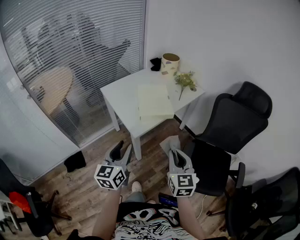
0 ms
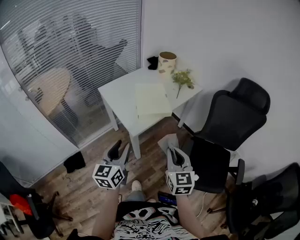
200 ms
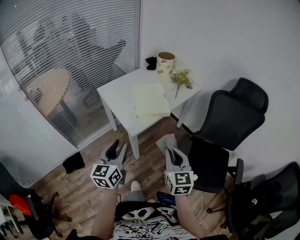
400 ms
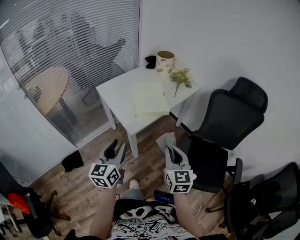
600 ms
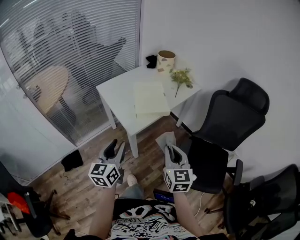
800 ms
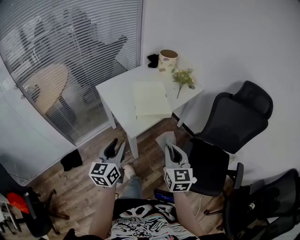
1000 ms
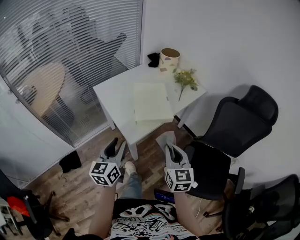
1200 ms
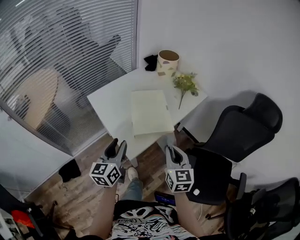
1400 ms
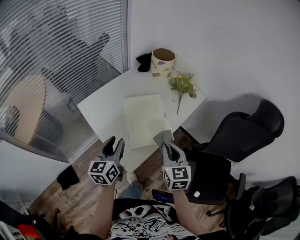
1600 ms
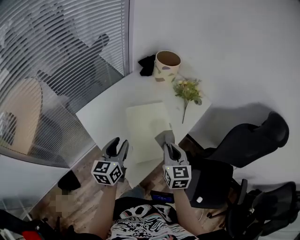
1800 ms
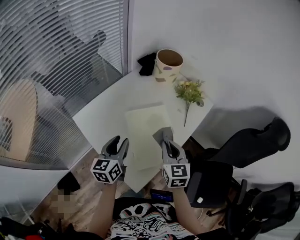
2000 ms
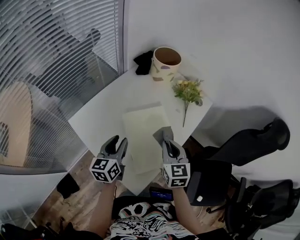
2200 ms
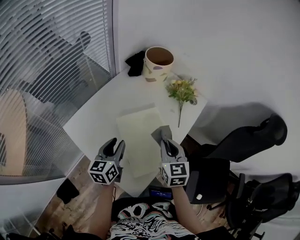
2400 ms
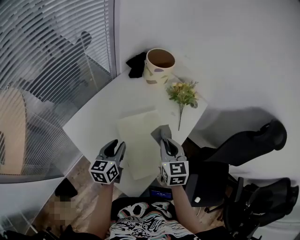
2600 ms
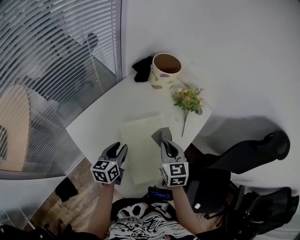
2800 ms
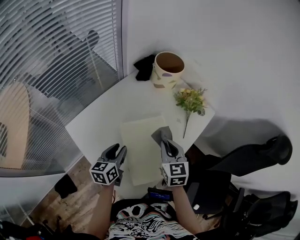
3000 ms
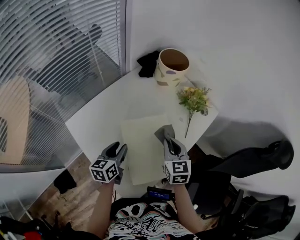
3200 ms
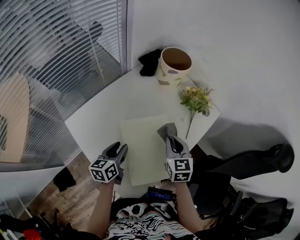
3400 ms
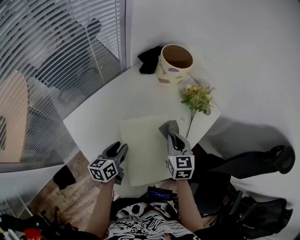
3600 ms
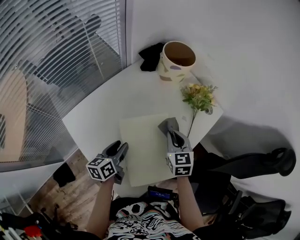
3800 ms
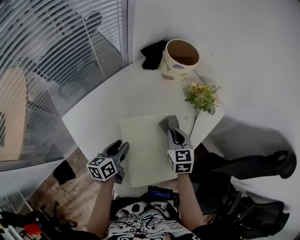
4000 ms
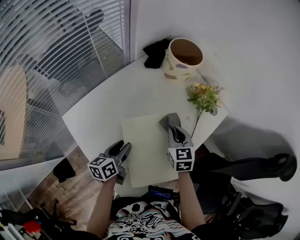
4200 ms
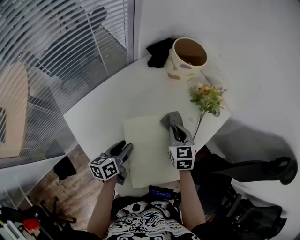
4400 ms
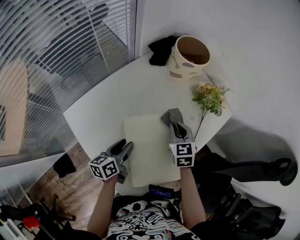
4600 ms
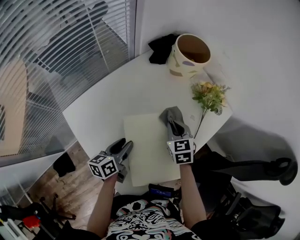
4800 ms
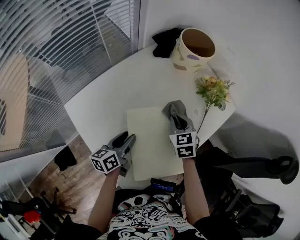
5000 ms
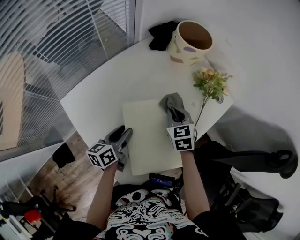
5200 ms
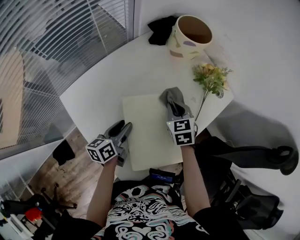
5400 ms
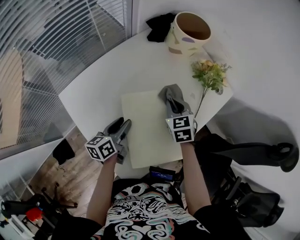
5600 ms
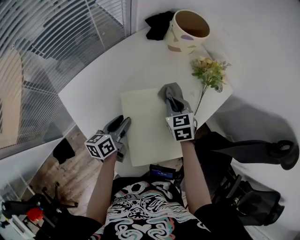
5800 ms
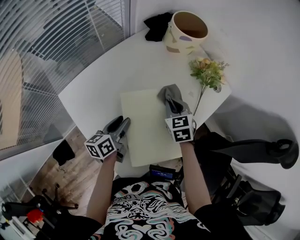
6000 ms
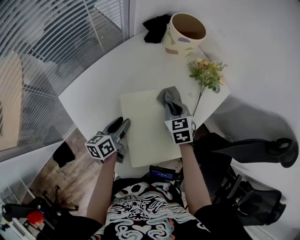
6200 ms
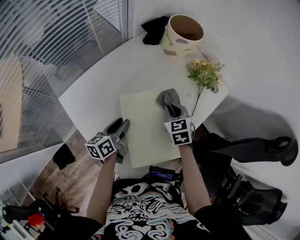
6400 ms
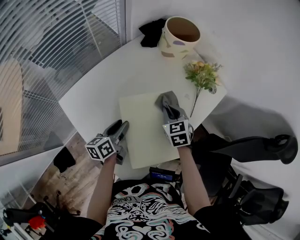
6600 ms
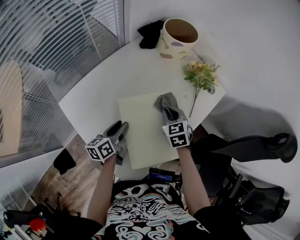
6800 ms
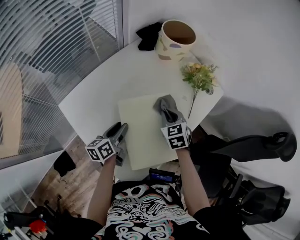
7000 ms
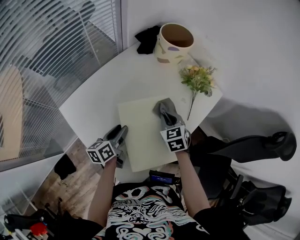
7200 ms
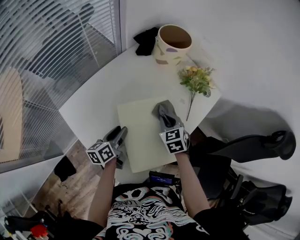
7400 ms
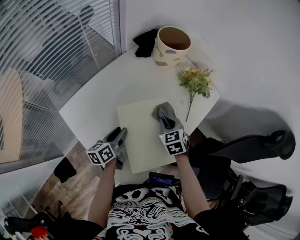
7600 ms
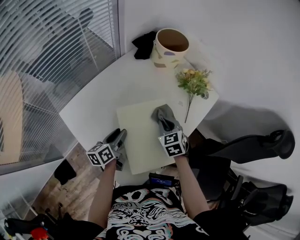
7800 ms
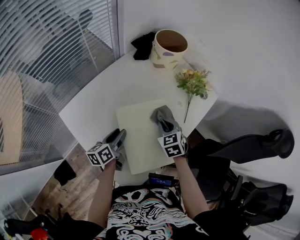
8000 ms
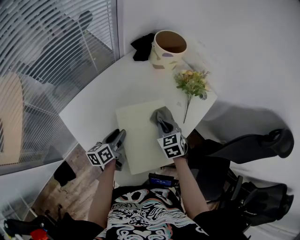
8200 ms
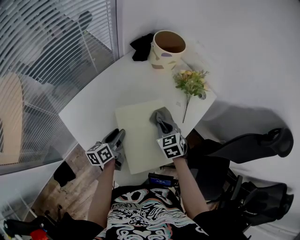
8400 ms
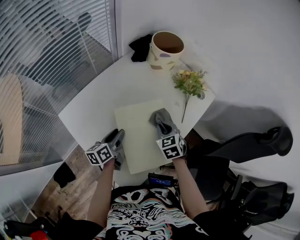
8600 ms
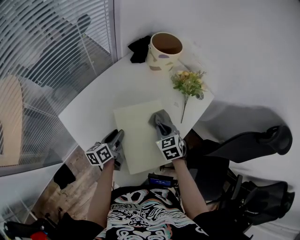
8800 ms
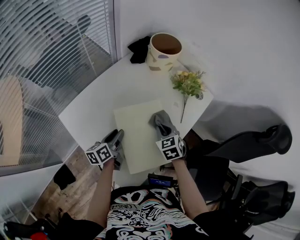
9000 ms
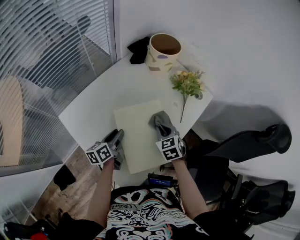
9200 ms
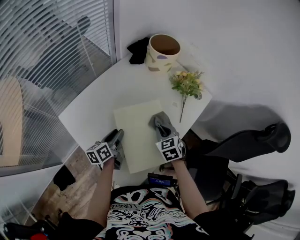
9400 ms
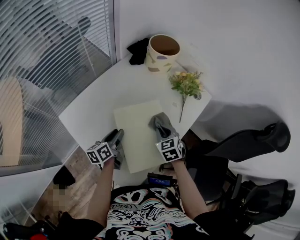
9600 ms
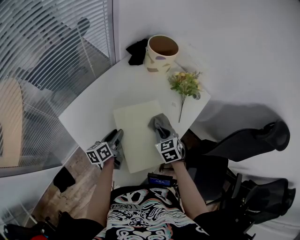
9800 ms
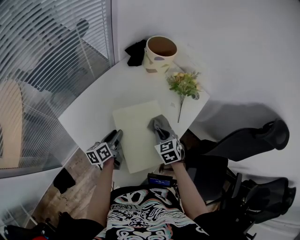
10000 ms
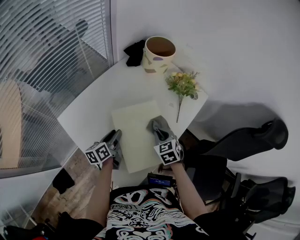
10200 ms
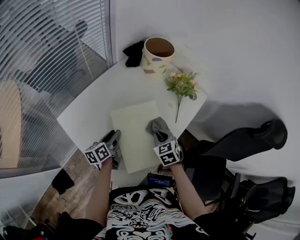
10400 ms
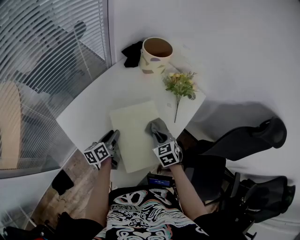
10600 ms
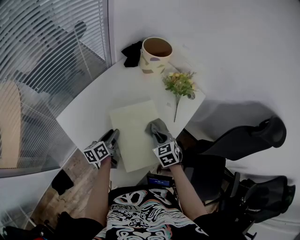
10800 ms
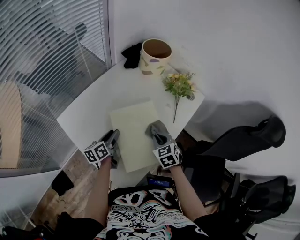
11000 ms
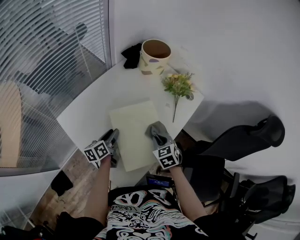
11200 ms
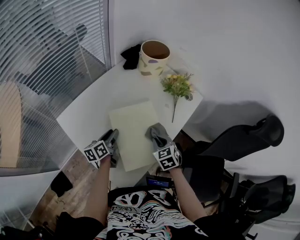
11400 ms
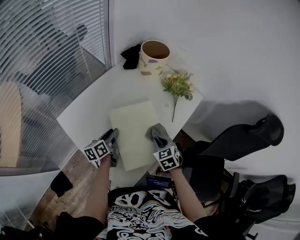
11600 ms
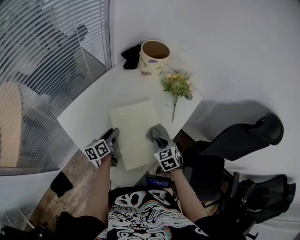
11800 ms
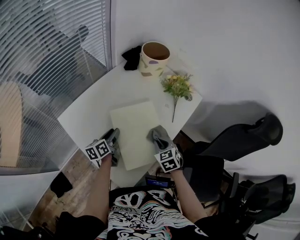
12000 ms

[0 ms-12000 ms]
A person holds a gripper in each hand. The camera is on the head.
0 ms to 1600 ms: Both grippers travel together forward, approximately 30 cm.
1600 ms to 3000 ms: The left gripper goes approximately 20 cm forward and downward, while the right gripper is displaced forward by roughly 20 cm.
3000 ms to 4400 ms: The right gripper is displaced forward and downward by approximately 10 cm; the left gripper travels downward by roughly 5 cm.
4400 ms to 7600 ms: The grippers make only small movements.
7600 ms to 9000 ms: The grippers stay close to where they were, moving slightly.
9000 ms to 10400 ms: The grippers stay close to where they were, moving slightly.
10400 ms to 12000 ms: The right gripper moves backward, roughly 5 cm.

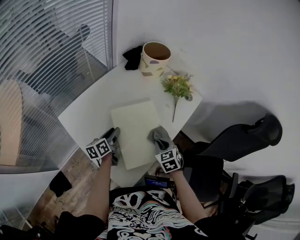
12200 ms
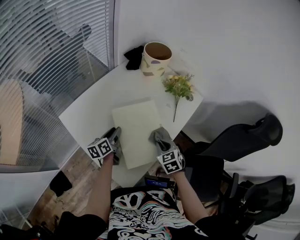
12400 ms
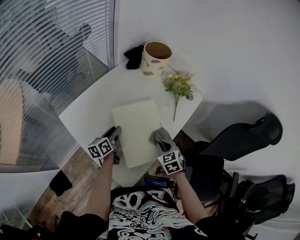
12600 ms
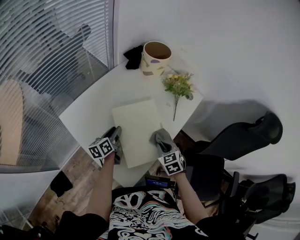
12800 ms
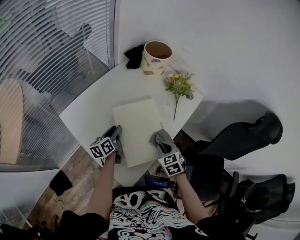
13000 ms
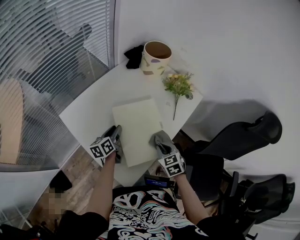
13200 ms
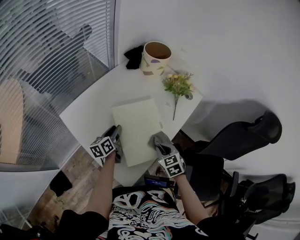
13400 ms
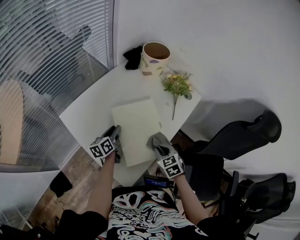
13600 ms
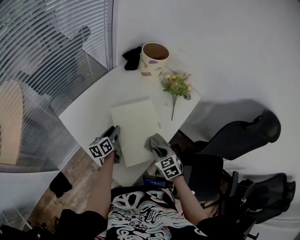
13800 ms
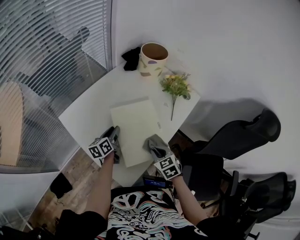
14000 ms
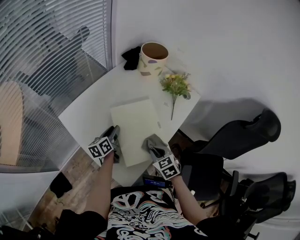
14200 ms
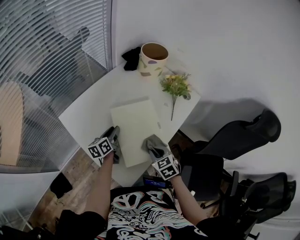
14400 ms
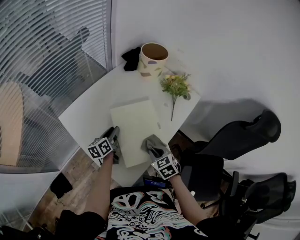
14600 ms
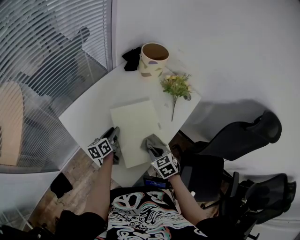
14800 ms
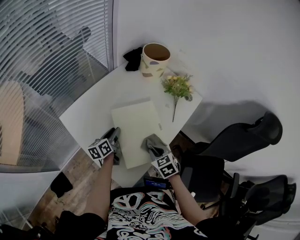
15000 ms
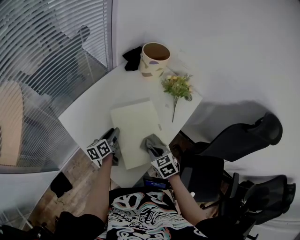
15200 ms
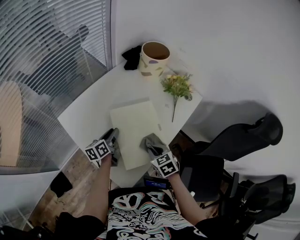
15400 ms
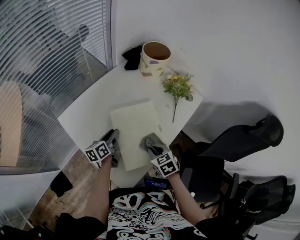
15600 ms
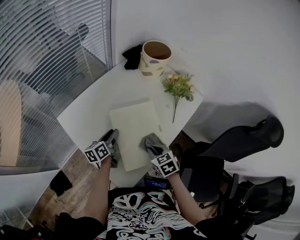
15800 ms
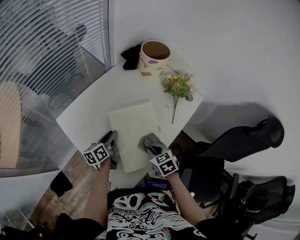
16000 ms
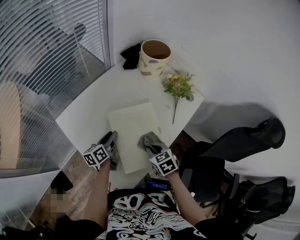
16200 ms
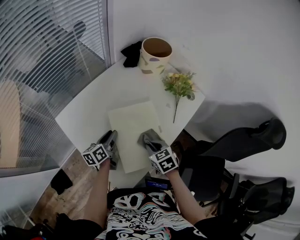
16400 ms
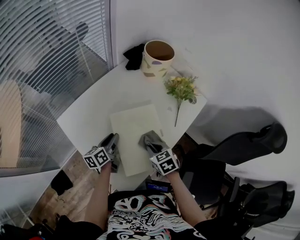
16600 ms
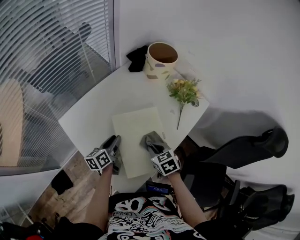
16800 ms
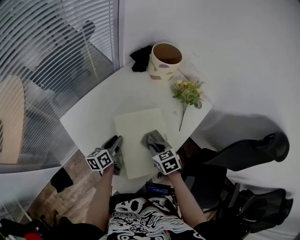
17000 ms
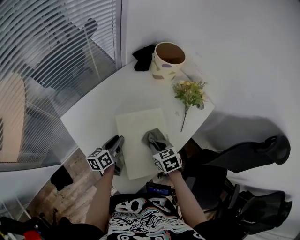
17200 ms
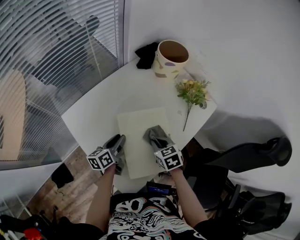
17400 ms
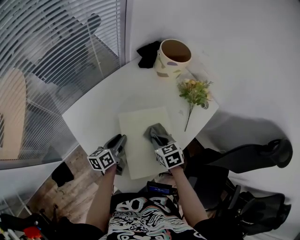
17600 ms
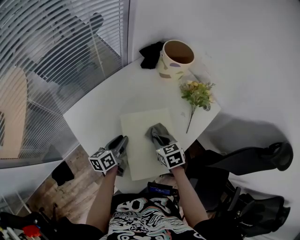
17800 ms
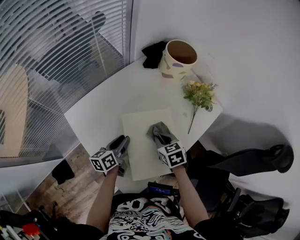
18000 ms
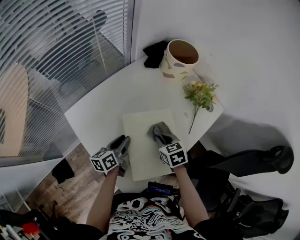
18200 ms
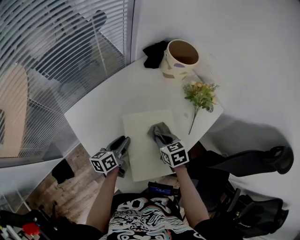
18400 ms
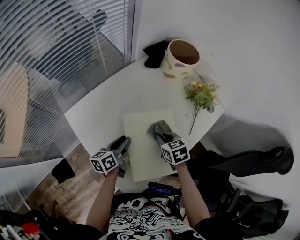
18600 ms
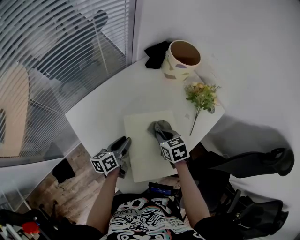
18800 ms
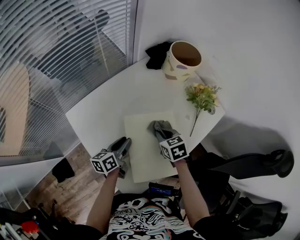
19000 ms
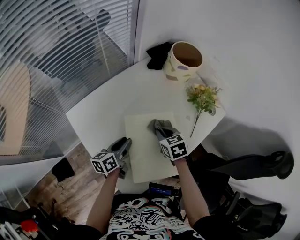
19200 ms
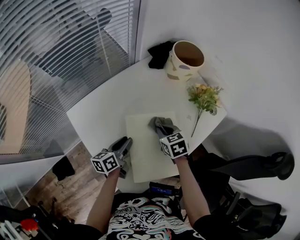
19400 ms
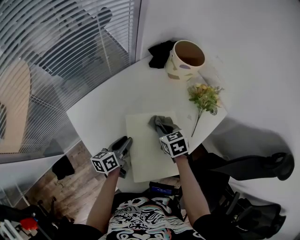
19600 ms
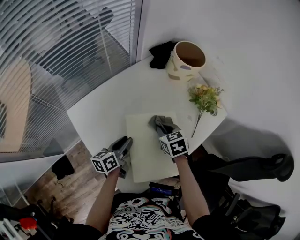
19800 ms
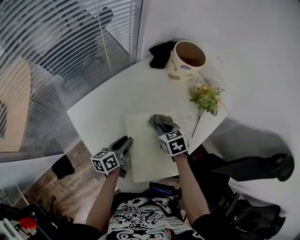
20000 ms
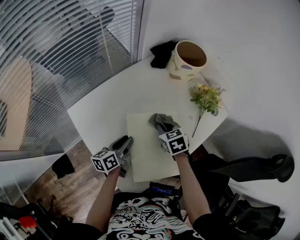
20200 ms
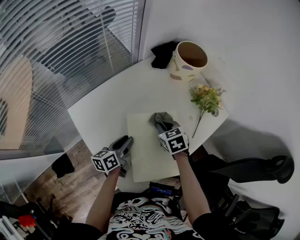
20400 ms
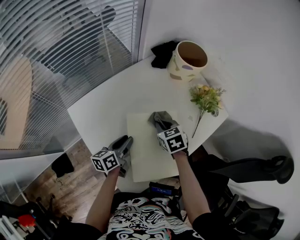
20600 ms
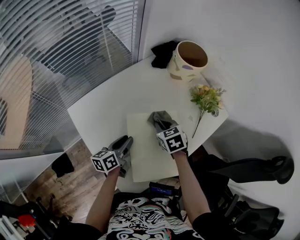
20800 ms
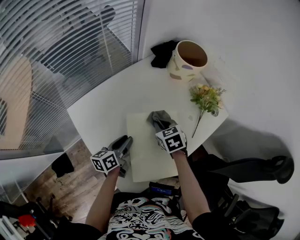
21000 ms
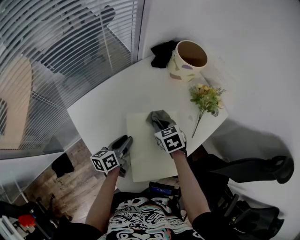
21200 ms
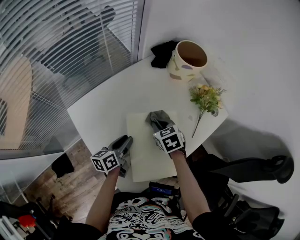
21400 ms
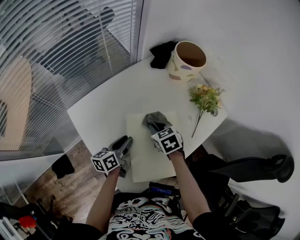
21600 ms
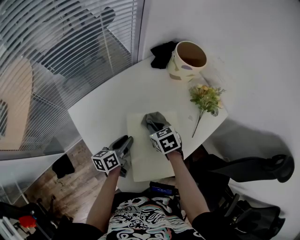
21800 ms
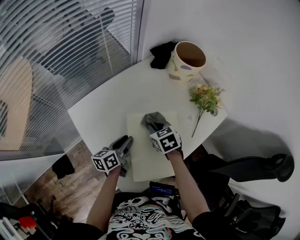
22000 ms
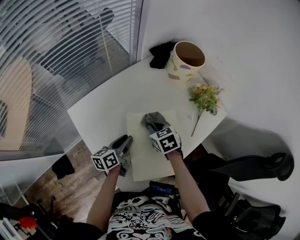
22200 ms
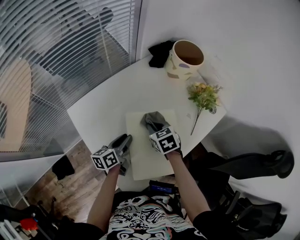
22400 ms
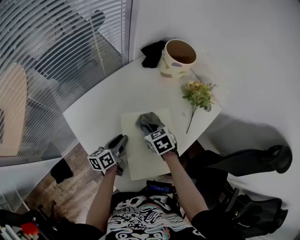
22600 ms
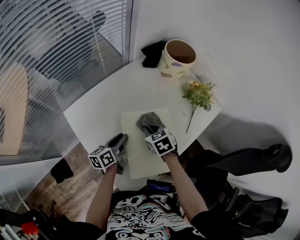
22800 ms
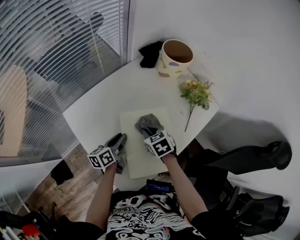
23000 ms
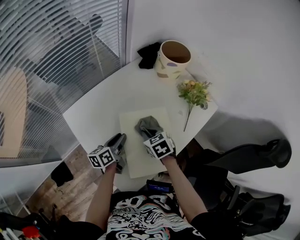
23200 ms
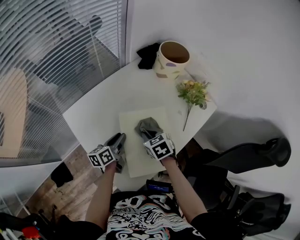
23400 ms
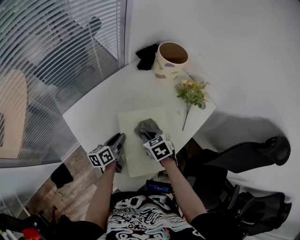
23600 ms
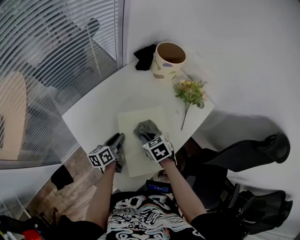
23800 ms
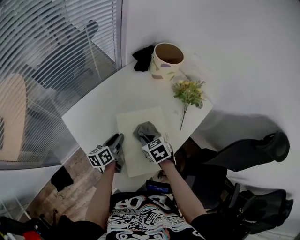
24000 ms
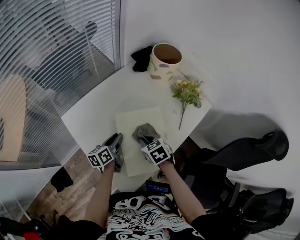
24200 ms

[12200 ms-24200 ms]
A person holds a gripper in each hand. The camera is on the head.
12200 ms to 13800 ms: The right gripper shifts approximately 5 cm backward.
13800 ms to 15200 ms: The grippers move only a little.
15200 ms to 16600 ms: The right gripper is displaced forward by roughly 5 cm.
16600 ms to 18200 ms: The right gripper travels forward by some 10 cm.
18200 ms to 19800 ms: The right gripper is displaced forward by approximately 5 cm.
19800 ms to 22600 ms: The grippers make only small movements.
22600 ms to 24200 ms: The right gripper heads backward, covering roughly 10 cm.
